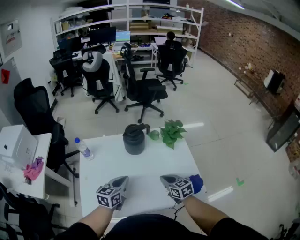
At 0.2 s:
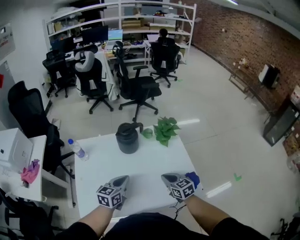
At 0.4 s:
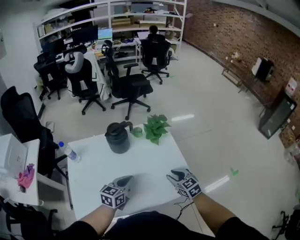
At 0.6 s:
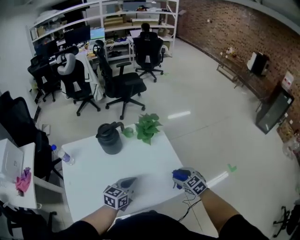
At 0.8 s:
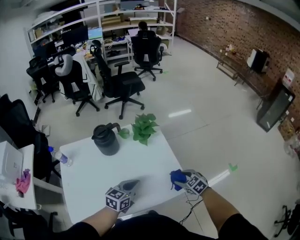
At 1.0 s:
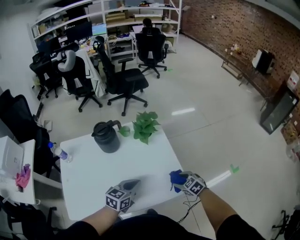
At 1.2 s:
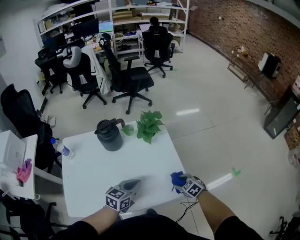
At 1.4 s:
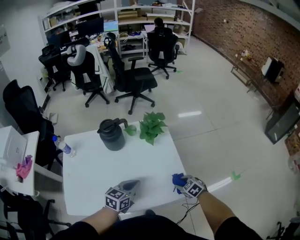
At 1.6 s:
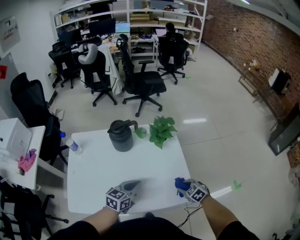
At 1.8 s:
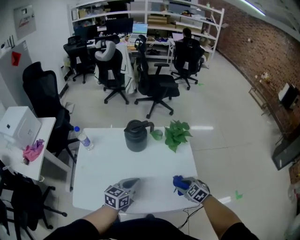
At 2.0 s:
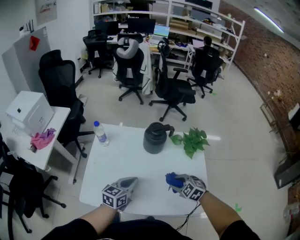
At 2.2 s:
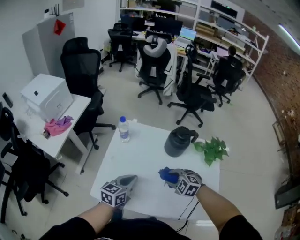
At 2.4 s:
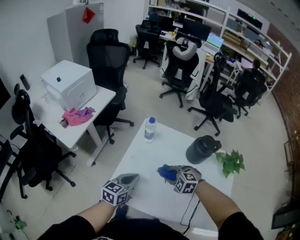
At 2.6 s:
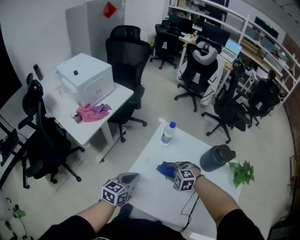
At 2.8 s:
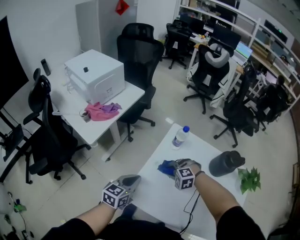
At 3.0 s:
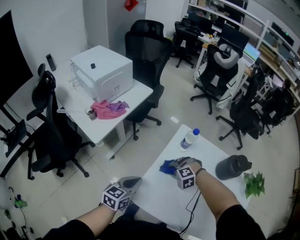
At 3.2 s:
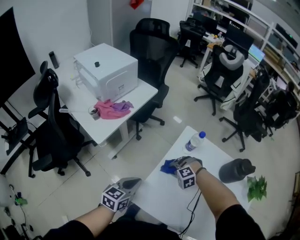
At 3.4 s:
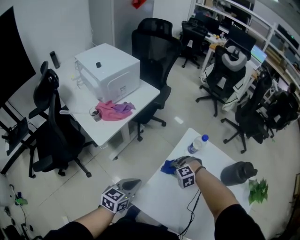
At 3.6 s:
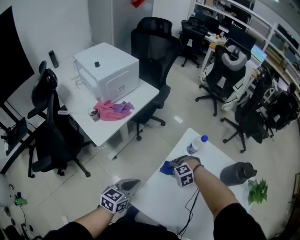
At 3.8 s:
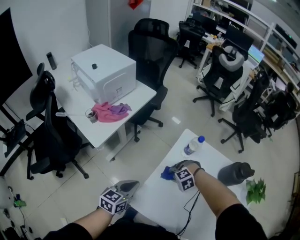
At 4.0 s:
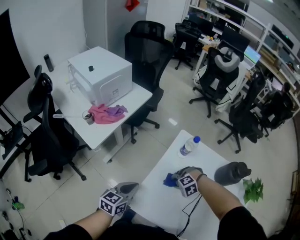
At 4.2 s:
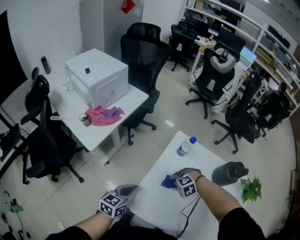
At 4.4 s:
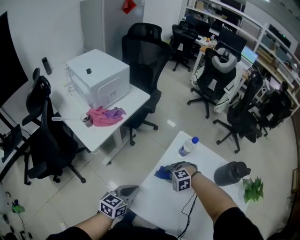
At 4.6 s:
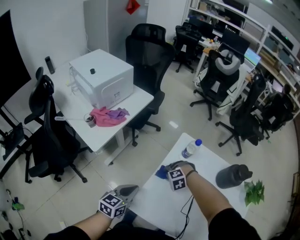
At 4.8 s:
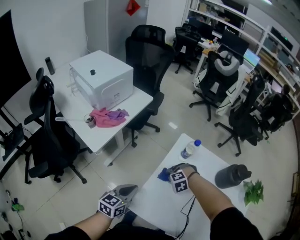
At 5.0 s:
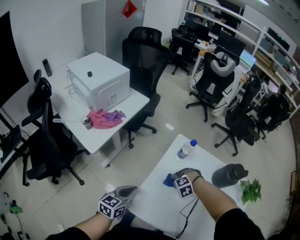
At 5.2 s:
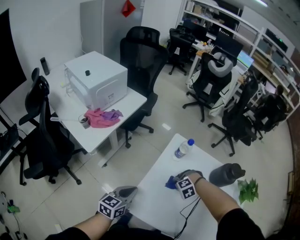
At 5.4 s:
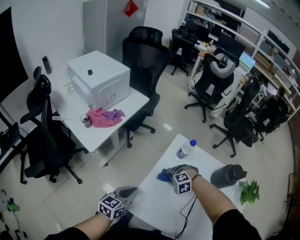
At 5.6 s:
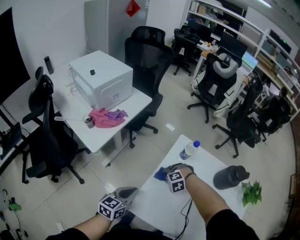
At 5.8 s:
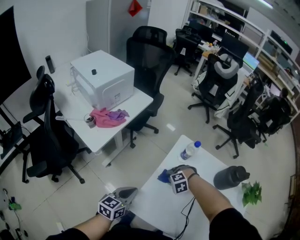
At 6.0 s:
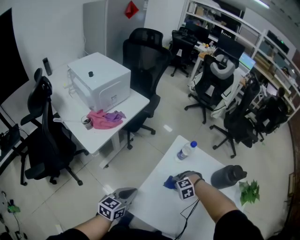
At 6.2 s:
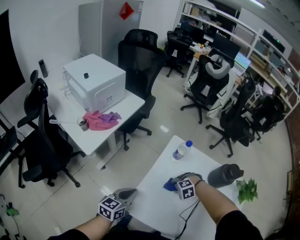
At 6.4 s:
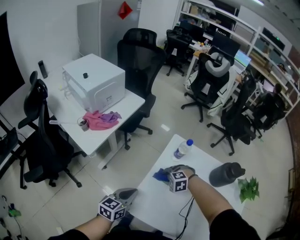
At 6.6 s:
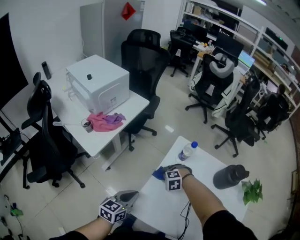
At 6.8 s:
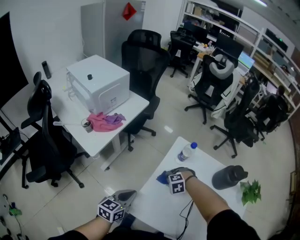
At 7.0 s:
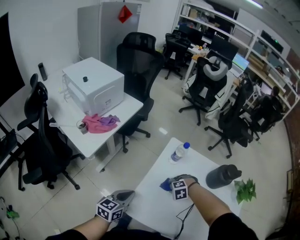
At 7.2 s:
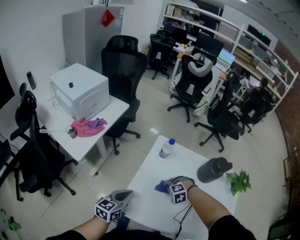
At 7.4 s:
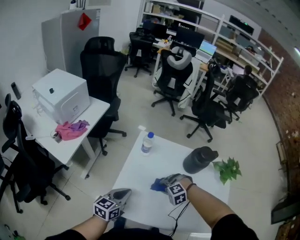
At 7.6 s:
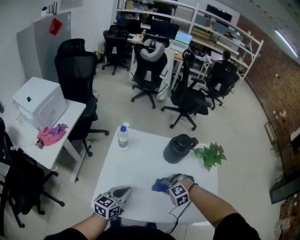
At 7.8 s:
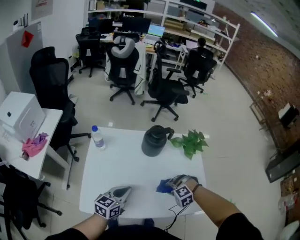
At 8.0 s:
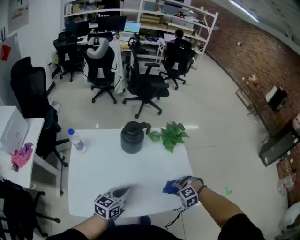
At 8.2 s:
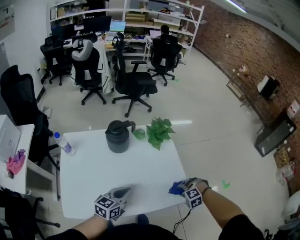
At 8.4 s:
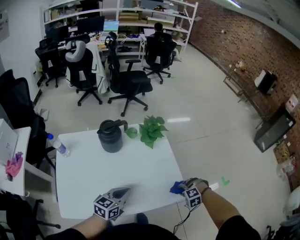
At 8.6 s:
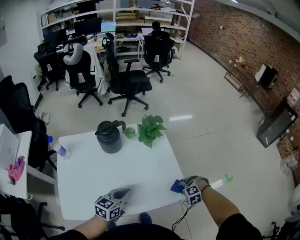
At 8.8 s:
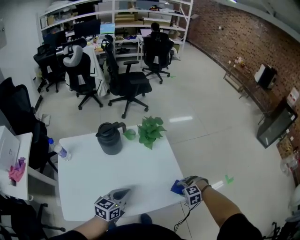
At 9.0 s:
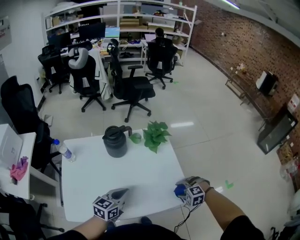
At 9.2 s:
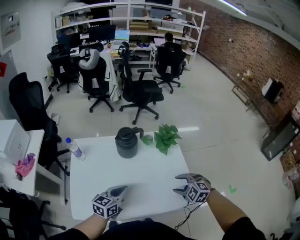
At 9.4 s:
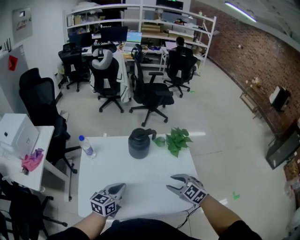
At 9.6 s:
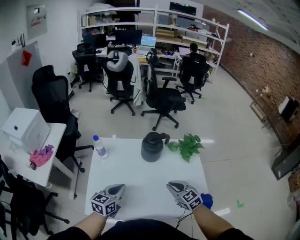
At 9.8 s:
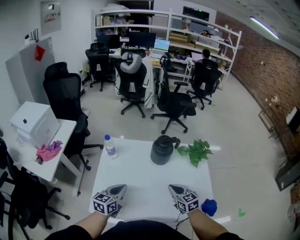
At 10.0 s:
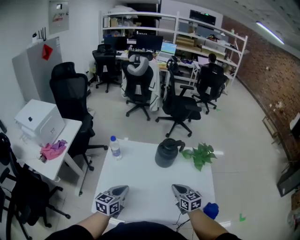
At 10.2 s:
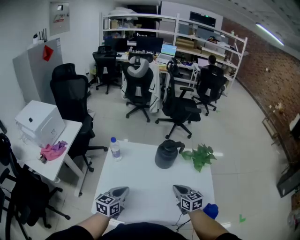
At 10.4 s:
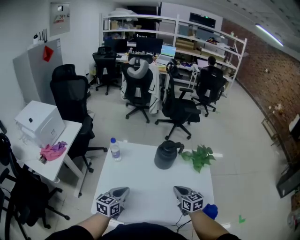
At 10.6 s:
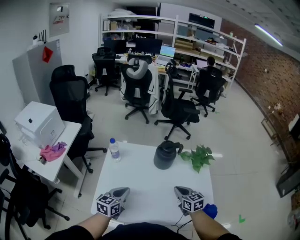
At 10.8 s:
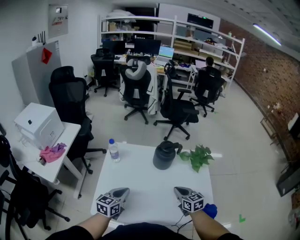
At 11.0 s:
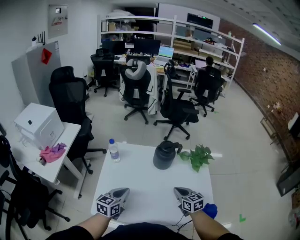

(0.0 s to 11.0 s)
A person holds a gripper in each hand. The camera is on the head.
0.0 s - 1.6 s: The right gripper heads to the right and downward, covering approximately 20 cm, swivels roughly 40 degrees, and opens its fingers; the left gripper heads to the right, covering some 15 cm.
1.6 s - 3.2 s: The two grippers travel together, roughly 60 cm. The right gripper rolls counterclockwise, seen from behind, by approximately 100 degrees. The left gripper rotates roughly 40 degrees.
4.8 s - 6.2 s: The right gripper changes place by about 10 cm.
6.2 s - 7.8 s: The left gripper changes place by some 30 cm, and rotates some 30 degrees. Meanwhile the right gripper moves approximately 35 cm, and swivels roughly 30 degrees.
7.8 s - 9.4 s: The right gripper is displaced upward by roughly 15 cm, and twists approximately 60 degrees clockwise, seen from behind.
9.4 s - 11.0 s: The right gripper is displaced to the left by some 5 cm, swivels approximately 30 degrees, and closes up; the left gripper heads to the left, covering about 10 cm.

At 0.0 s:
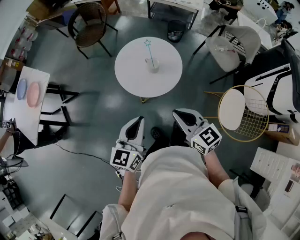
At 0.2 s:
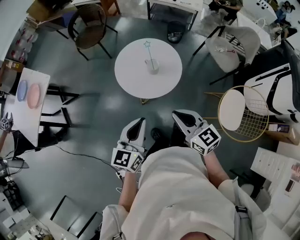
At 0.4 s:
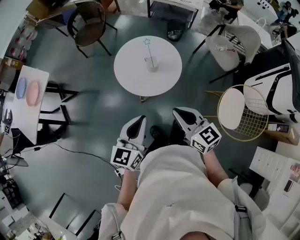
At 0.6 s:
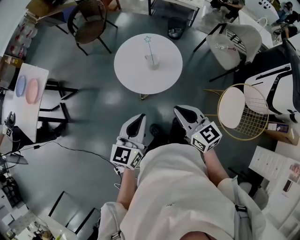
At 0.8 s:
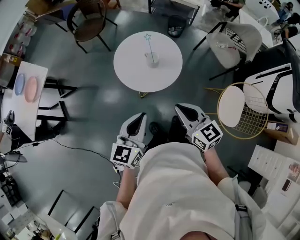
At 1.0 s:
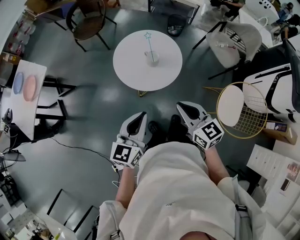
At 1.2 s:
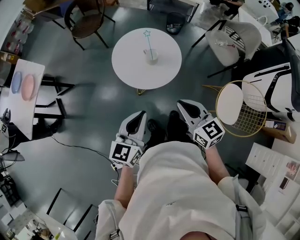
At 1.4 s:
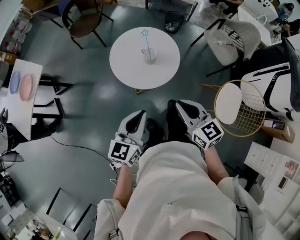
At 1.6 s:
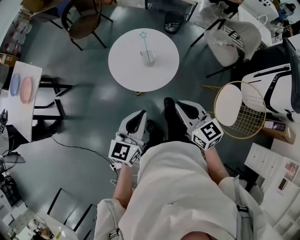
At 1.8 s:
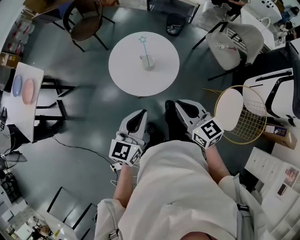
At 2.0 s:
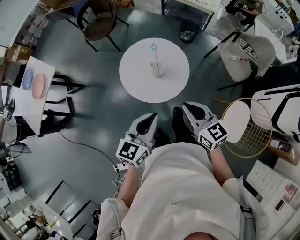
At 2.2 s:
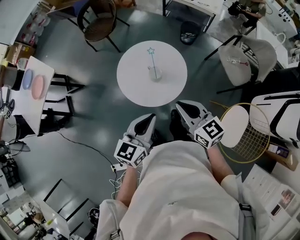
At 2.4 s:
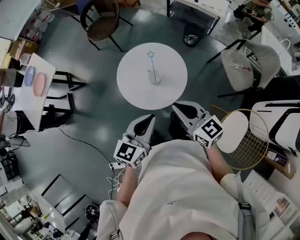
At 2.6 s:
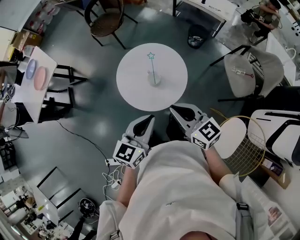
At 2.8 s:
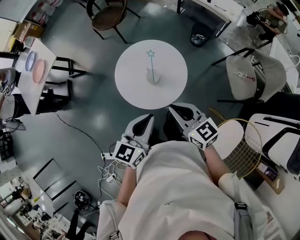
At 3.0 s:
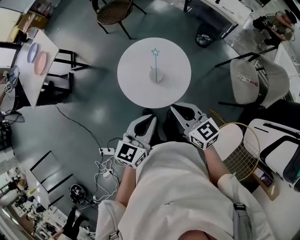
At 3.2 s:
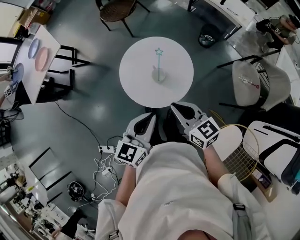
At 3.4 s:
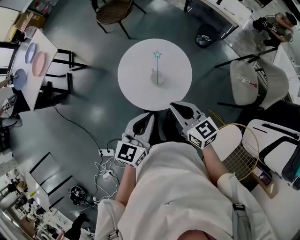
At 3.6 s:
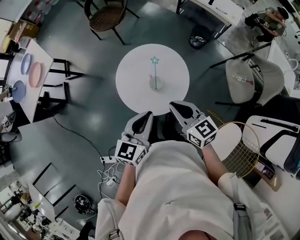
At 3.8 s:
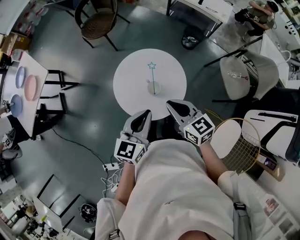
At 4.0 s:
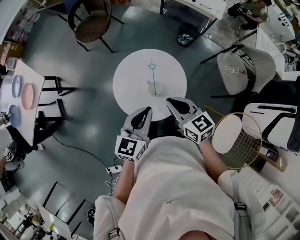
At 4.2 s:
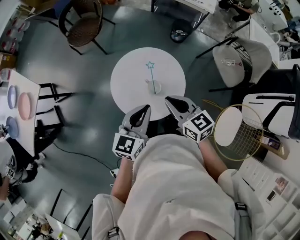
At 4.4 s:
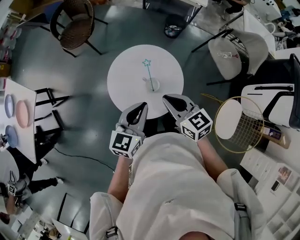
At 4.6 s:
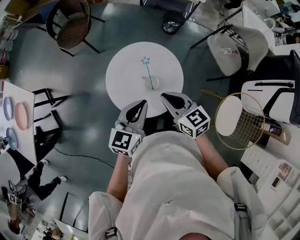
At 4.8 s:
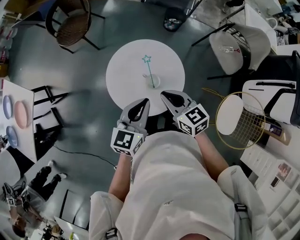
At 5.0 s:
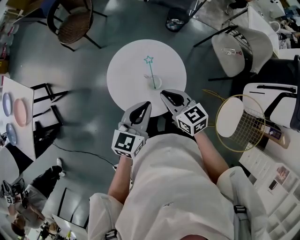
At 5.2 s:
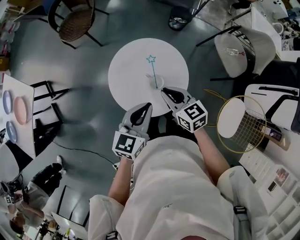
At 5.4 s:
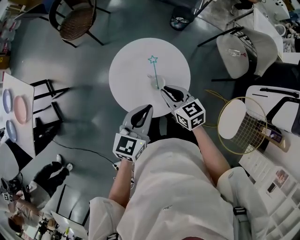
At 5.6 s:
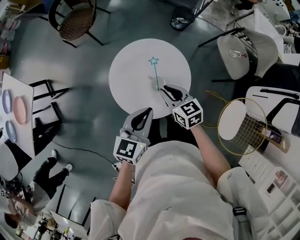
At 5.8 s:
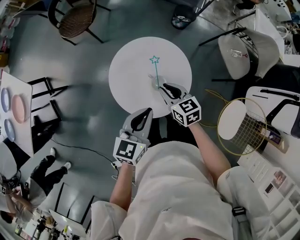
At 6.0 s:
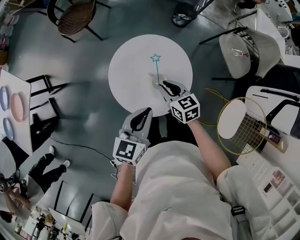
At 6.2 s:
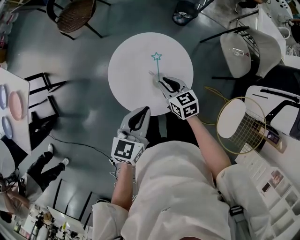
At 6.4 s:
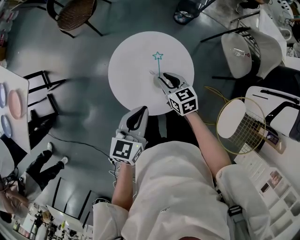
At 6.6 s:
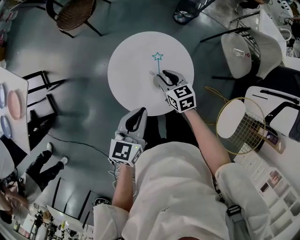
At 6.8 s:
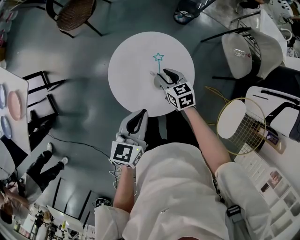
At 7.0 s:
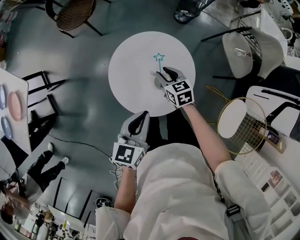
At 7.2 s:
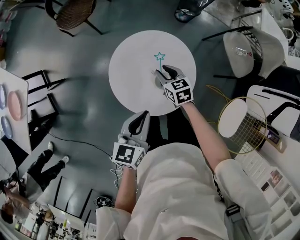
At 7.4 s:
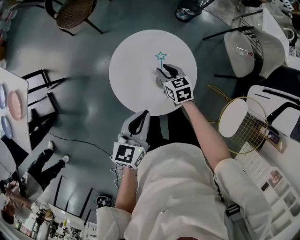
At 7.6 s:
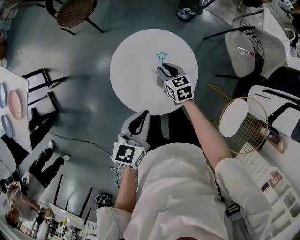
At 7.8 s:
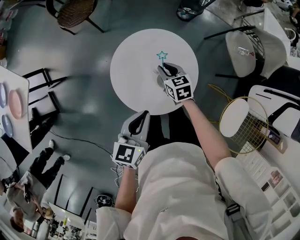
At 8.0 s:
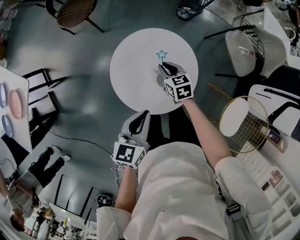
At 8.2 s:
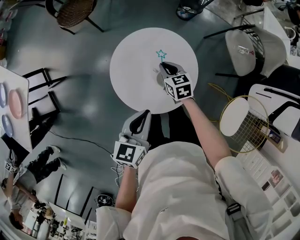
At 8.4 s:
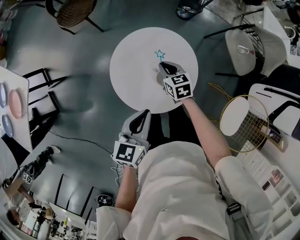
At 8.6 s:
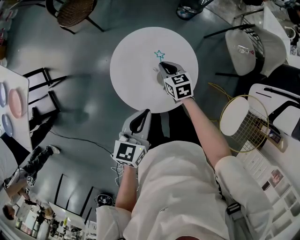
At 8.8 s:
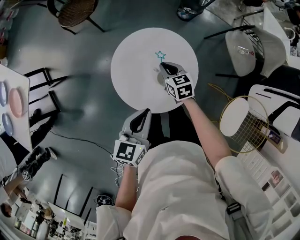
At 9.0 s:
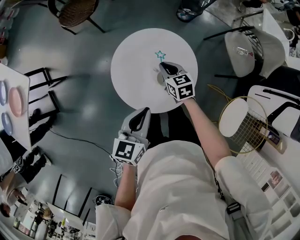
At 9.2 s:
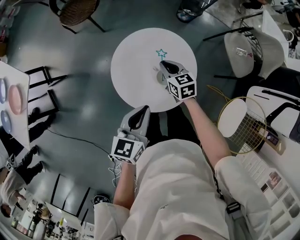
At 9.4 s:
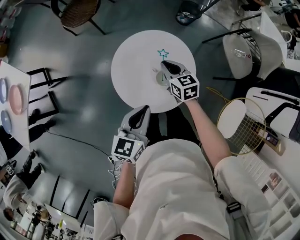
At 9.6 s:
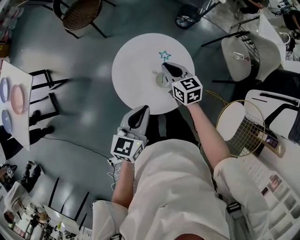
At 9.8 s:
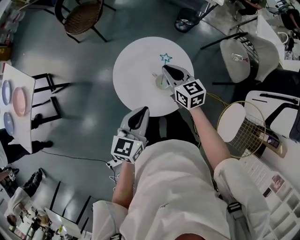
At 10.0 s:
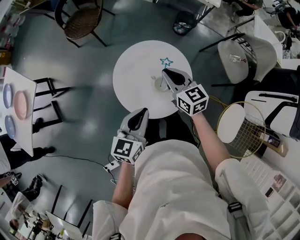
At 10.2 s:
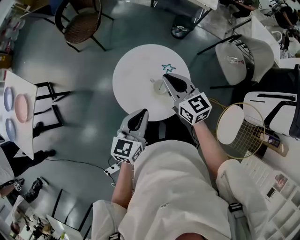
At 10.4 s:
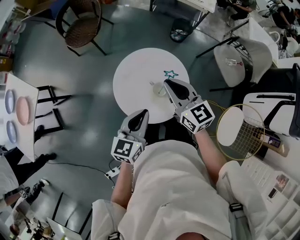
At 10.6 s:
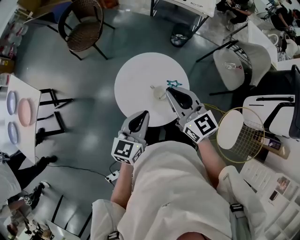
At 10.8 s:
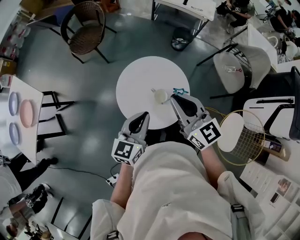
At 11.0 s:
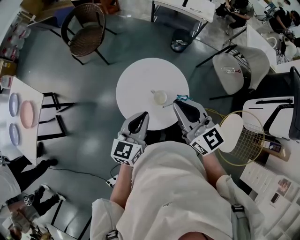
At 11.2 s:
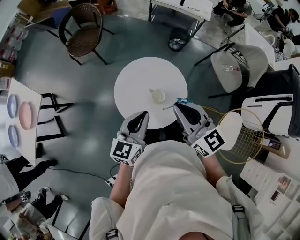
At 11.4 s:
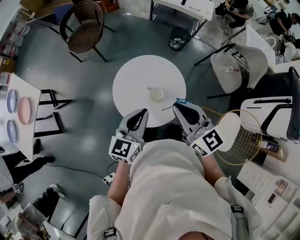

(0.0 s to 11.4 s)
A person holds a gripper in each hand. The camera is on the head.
0.0 s - 1.4 s: The grippers stay close to where they were, moving slightly.
1.4 s - 2.8 s: The right gripper travels forward and to the right by approximately 20 cm, and rotates about 30 degrees, while the left gripper goes approximately 20 cm to the right and forward.
2.8 s - 4.2 s: Both grippers move forward and to the left, roughly 15 cm.
4.2 s - 5.6 s: The right gripper shifts some 15 cm downward and forward, while the left gripper travels downward by roughly 5 cm.
5.6 s - 7.2 s: The right gripper shifts approximately 15 cm downward and forward.
7.2 s - 8.6 s: The right gripper closes up.
8.6 s - 10.0 s: The right gripper heads upward, covering some 15 cm, and swivels roughly 20 degrees.
10.0 s - 11.4 s: The left gripper goes roughly 5 cm upward; the right gripper moves upward and backward, some 20 cm.

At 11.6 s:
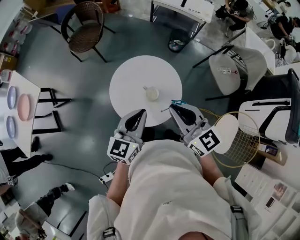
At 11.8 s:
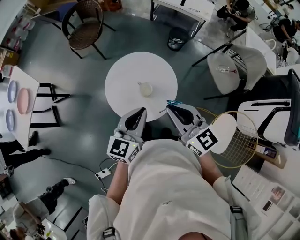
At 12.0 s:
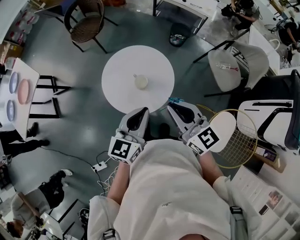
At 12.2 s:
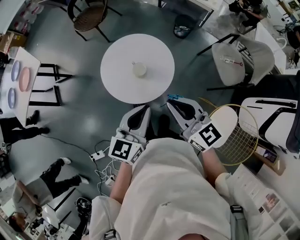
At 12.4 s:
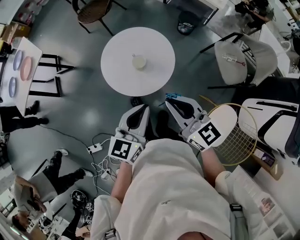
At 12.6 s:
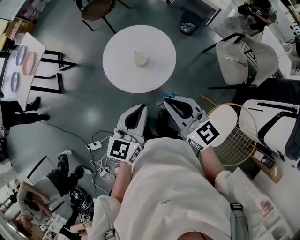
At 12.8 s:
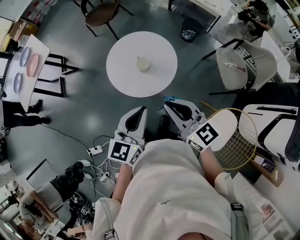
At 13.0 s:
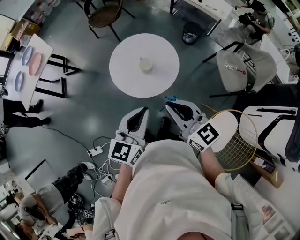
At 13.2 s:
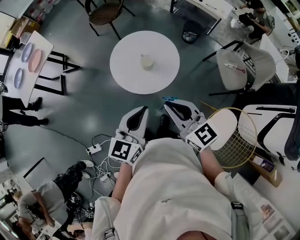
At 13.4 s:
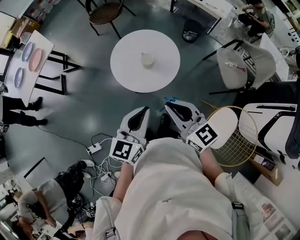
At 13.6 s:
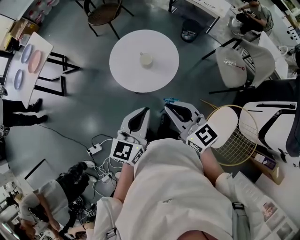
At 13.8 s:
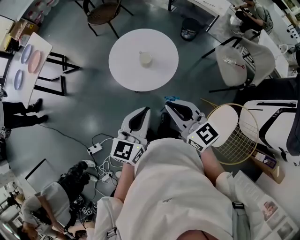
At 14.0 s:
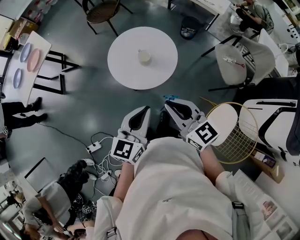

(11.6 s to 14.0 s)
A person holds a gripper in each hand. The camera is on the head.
11.6 s - 12.8 s: The grippers both shift backward and to the right by roughly 20 cm.
12.8 s - 14.0 s: The right gripper shifts by approximately 5 cm. The left gripper moves backward, approximately 5 cm.
